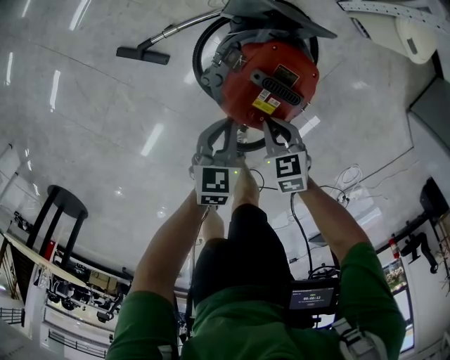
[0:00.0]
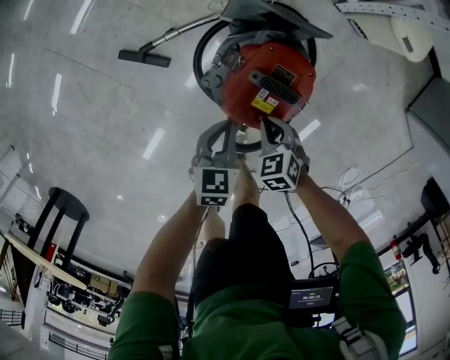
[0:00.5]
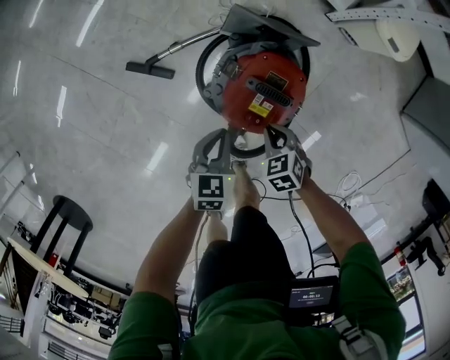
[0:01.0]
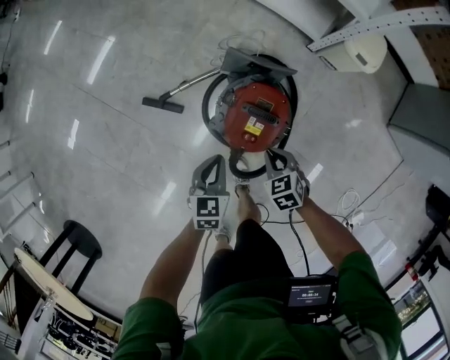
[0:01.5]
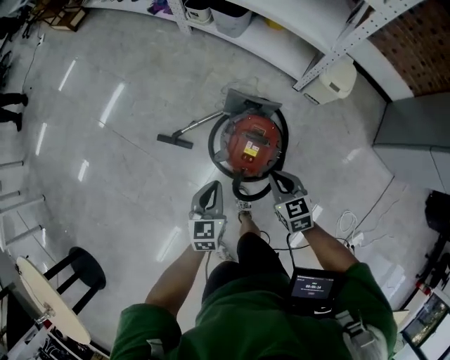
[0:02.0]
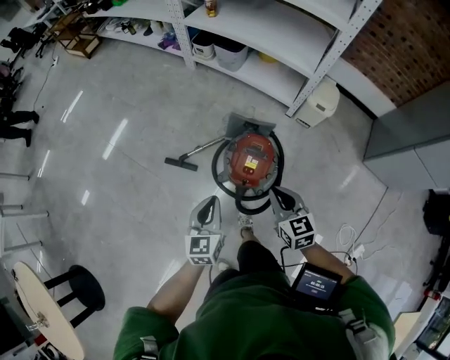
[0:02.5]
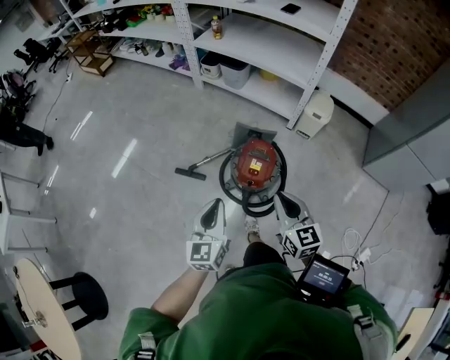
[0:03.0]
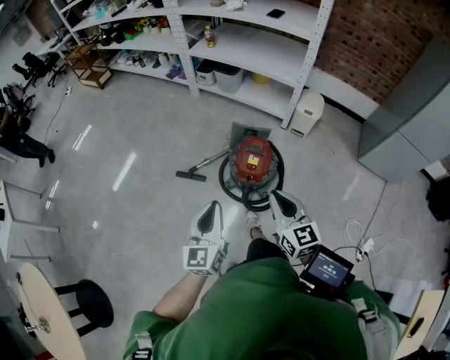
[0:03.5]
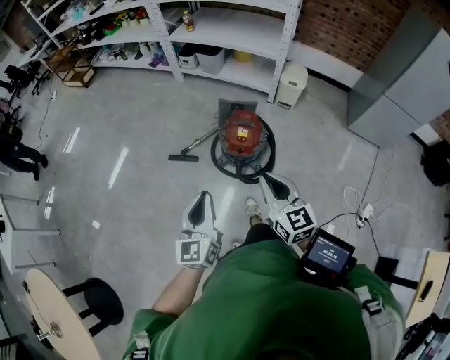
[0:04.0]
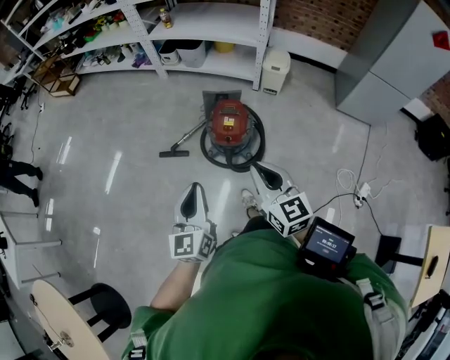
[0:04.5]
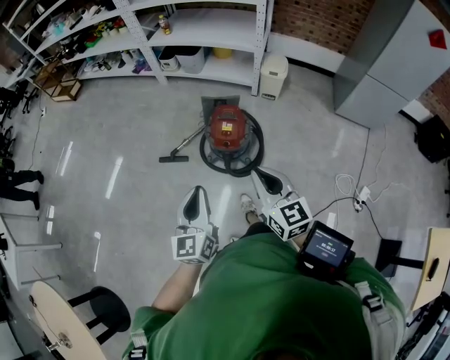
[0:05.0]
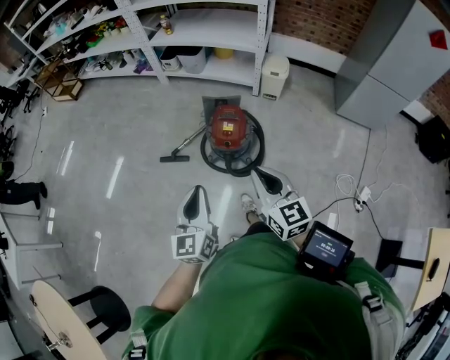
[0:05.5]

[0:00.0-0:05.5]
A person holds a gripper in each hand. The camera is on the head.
0:00.0 to 0:02.0: The grippers both shift upward by approximately 30 cm.
0:02.0 to 0:03.5: Both grippers travel together upward and backward, some 35 cm. The right gripper angles its fingers upward, by about 30 degrees, while the left gripper rotates about 30 degrees.
0:03.5 to 0:05.5: Both grippers travel together backward, roughly 10 cm.

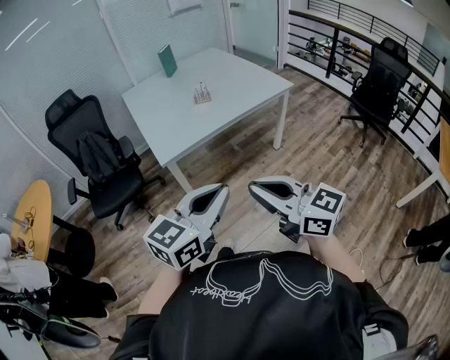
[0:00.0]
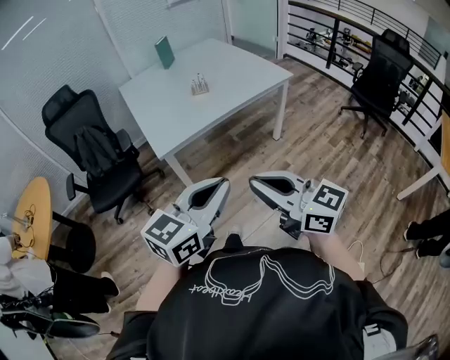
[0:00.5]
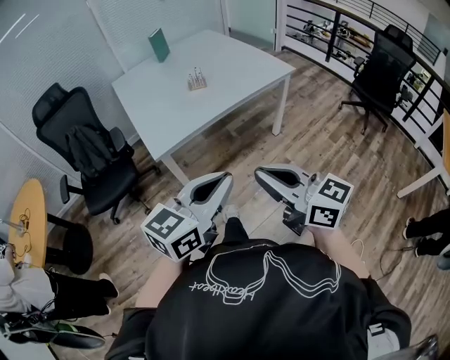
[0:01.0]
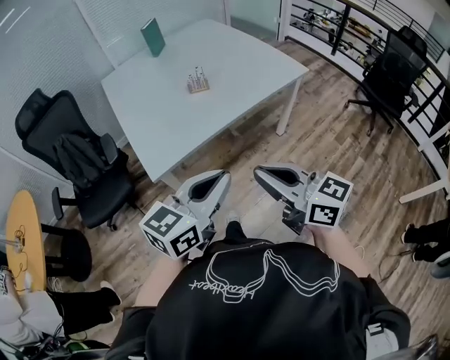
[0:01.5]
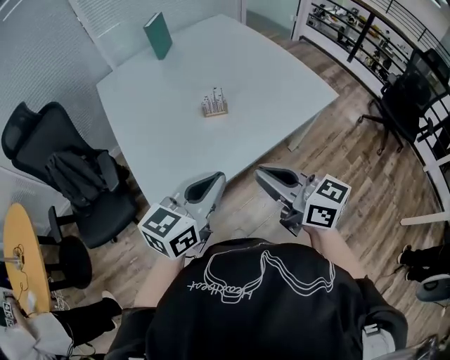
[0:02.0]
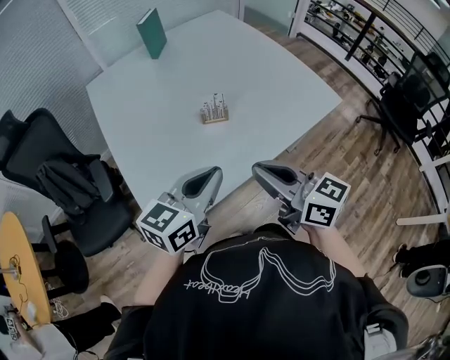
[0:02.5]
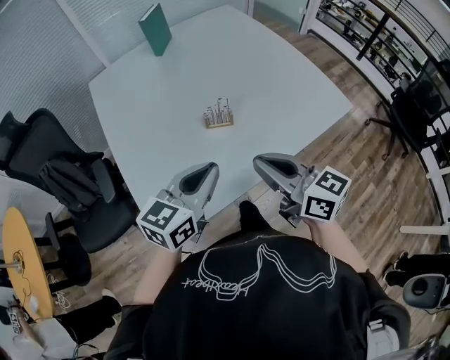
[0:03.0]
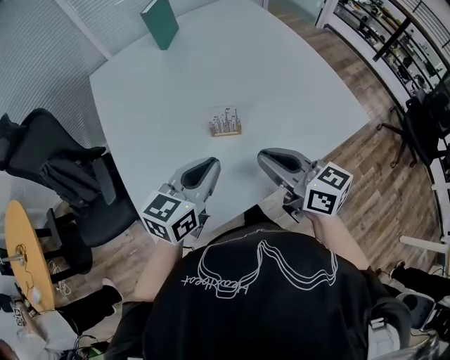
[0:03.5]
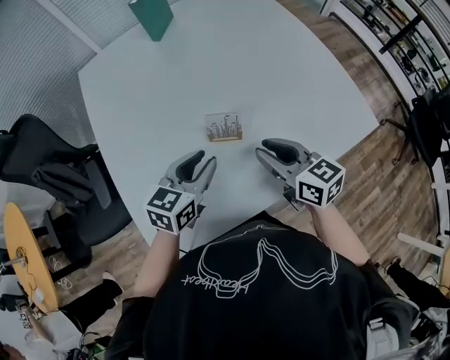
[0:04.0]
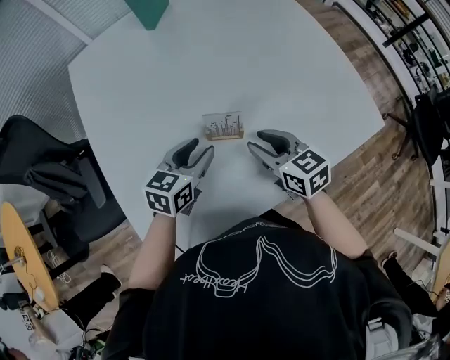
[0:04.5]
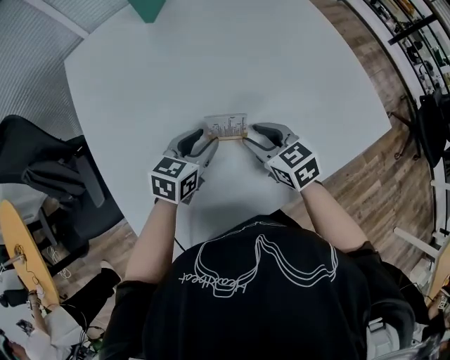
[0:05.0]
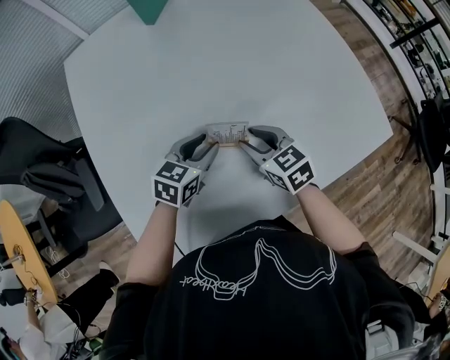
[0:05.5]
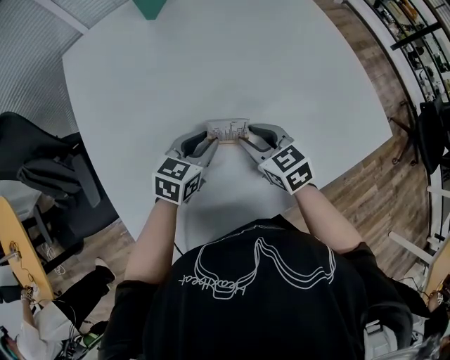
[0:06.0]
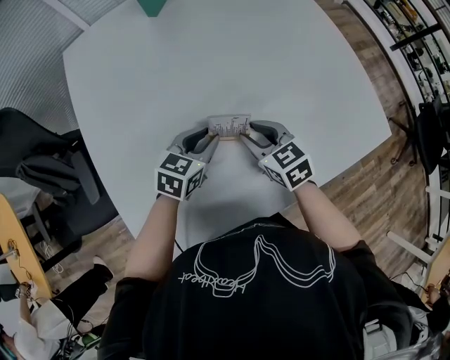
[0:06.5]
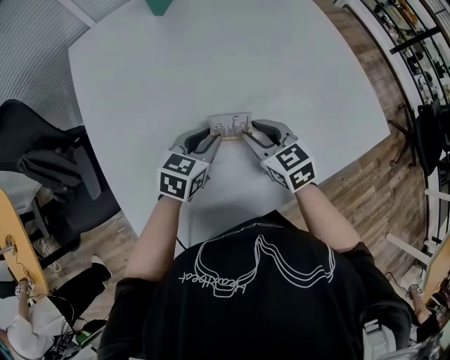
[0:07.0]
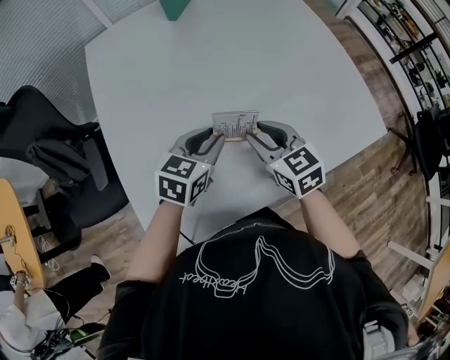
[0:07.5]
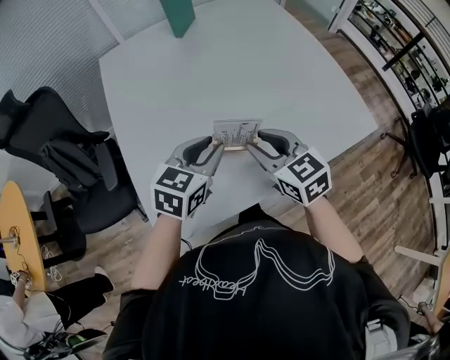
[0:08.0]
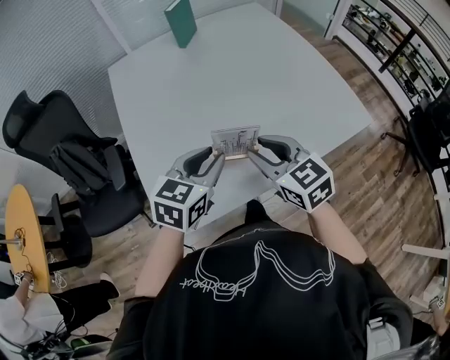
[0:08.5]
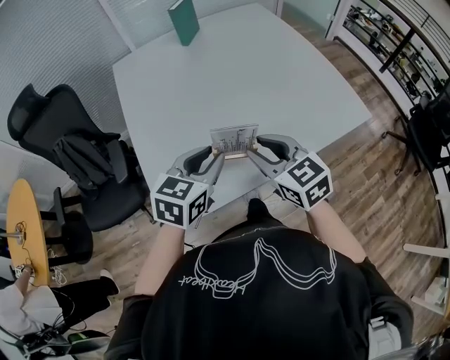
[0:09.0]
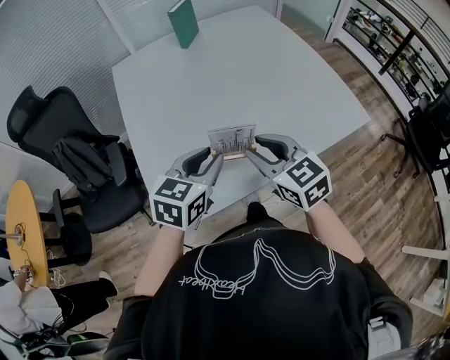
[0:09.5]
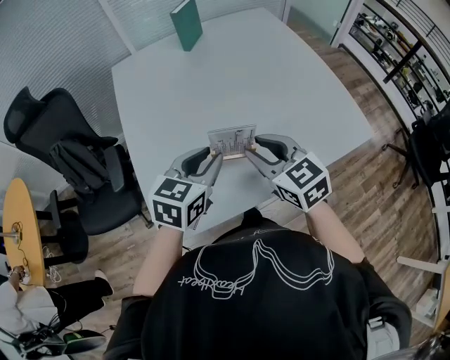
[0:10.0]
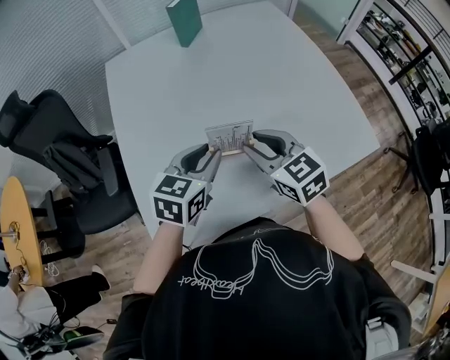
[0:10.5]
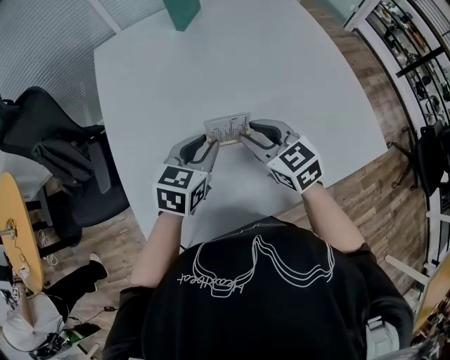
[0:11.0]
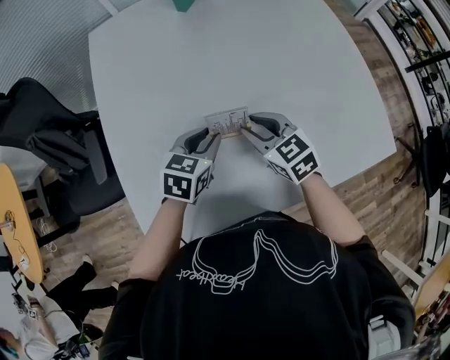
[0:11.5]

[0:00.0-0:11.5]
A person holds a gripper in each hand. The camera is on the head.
0:00.0 to 0:02.0: The two grippers travel together, forward, approximately 50 cm.
0:02.0 to 0:04.0: Both grippers travel together forward and downward, about 30 cm. The right gripper opens. Meanwhile the left gripper opens.
0:04.0 to 0:06.0: Both grippers move downward and forward, roughly 15 cm. The right gripper rotates approximately 20 degrees.
0:06.0 to 0:07.5: The grippers both shift upward and backward by some 10 cm.
0:07.5 to 0:09.5: The grippers both shift backward and upward by roughly 20 cm.
0:09.5 to 0:11.5: Both grippers move forward and downward, about 25 cm.

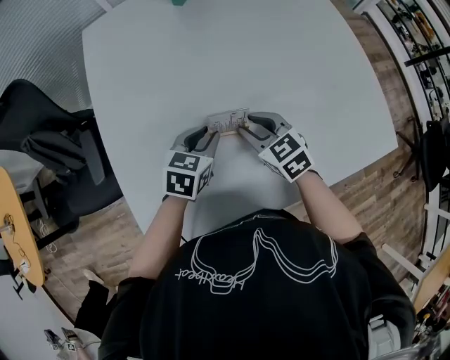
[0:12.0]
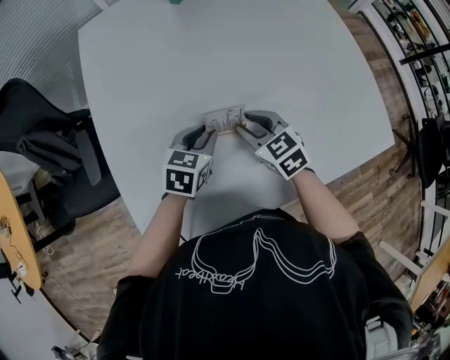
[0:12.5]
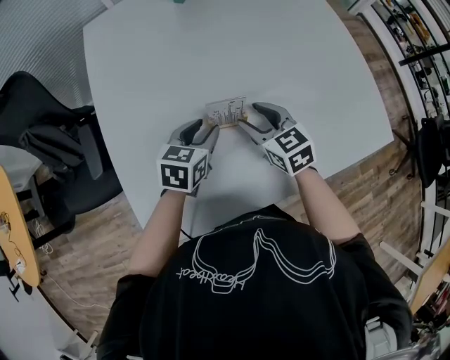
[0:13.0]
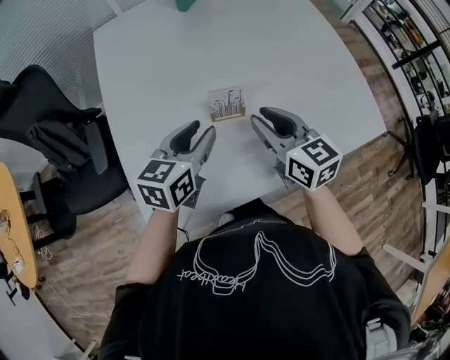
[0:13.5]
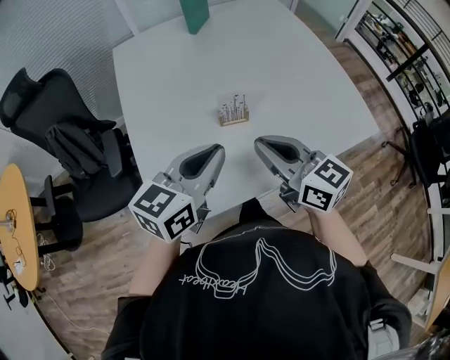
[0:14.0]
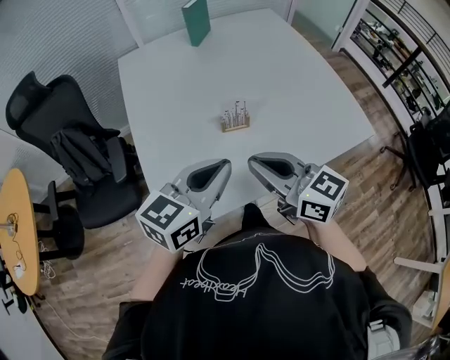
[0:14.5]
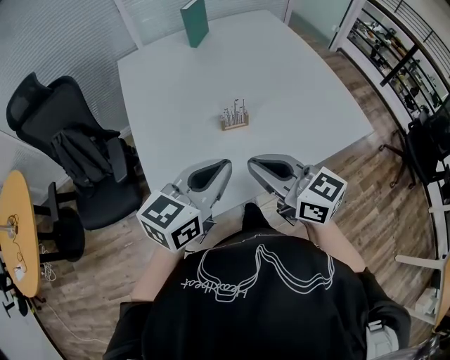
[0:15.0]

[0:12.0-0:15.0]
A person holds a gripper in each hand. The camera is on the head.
0:12.0 to 0:13.5: The grippers both shift upward and backward by some 15 cm. The right gripper changes its angle by about 30 degrees, and opens, then closes once more. The left gripper changes its angle by about 20 degrees.
0:13.5 to 0:15.0: The grippers both shift backward and upward by some 20 cm. The left gripper closes; the right gripper closes up.

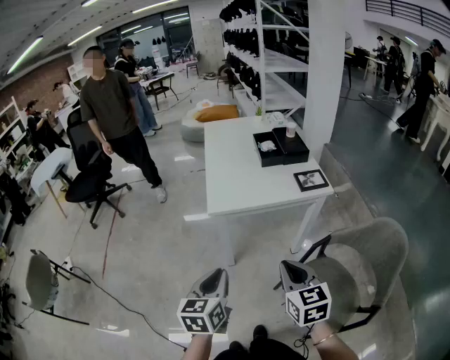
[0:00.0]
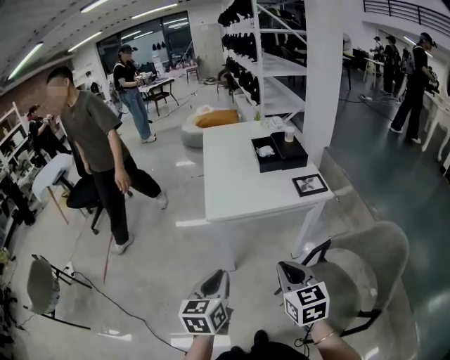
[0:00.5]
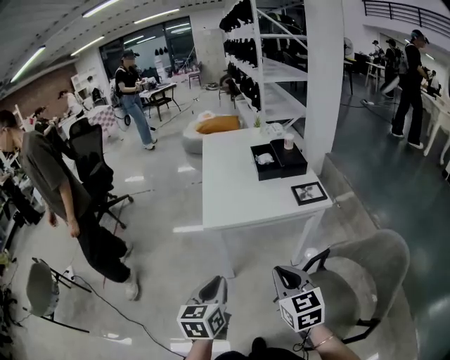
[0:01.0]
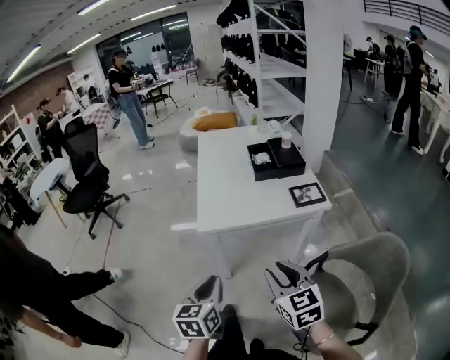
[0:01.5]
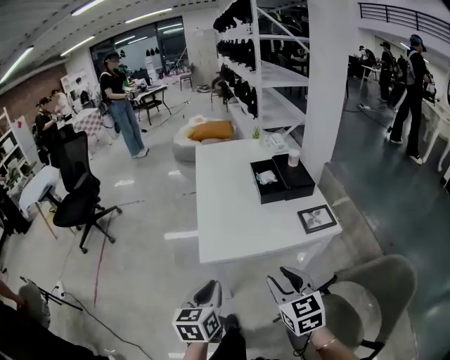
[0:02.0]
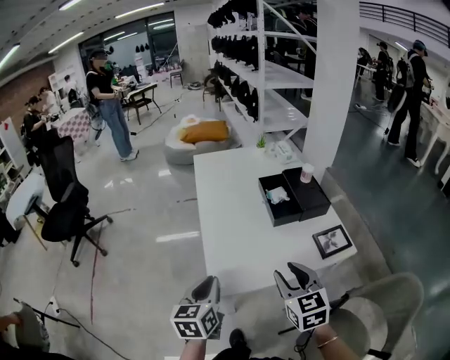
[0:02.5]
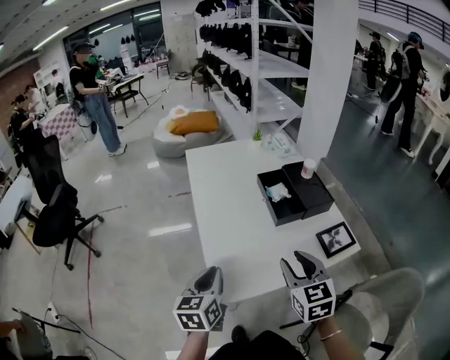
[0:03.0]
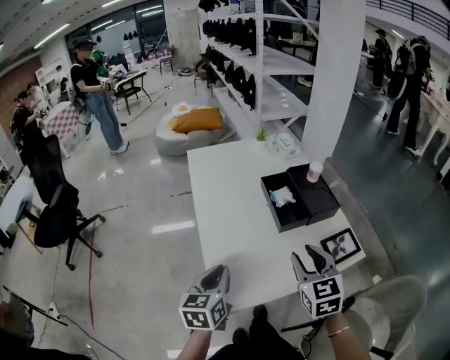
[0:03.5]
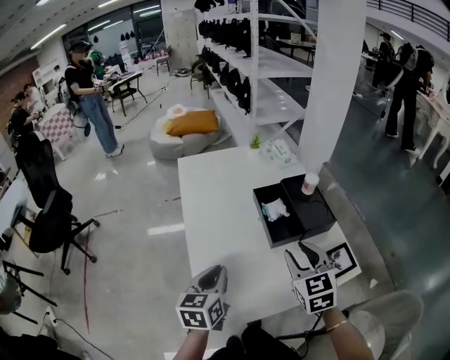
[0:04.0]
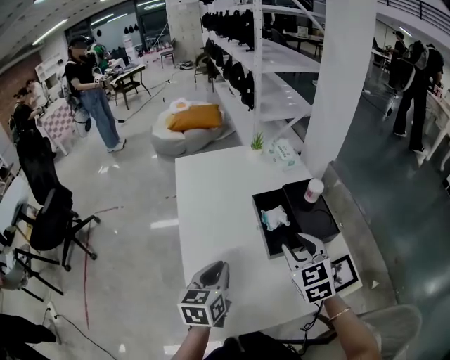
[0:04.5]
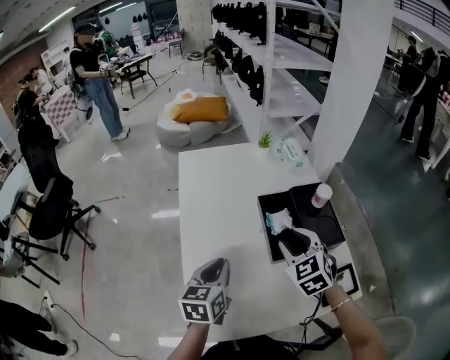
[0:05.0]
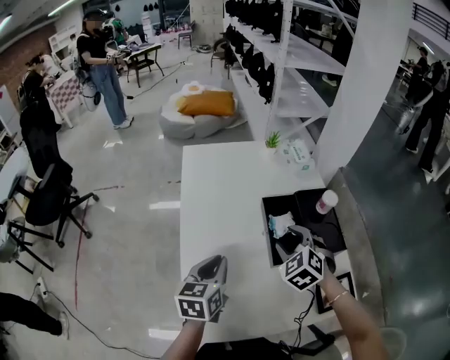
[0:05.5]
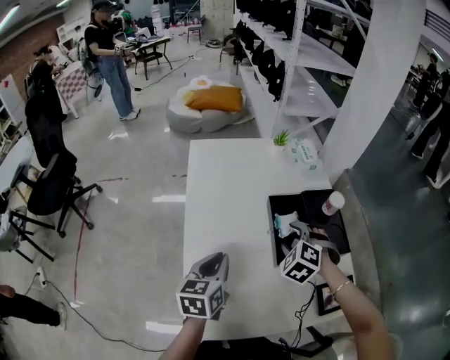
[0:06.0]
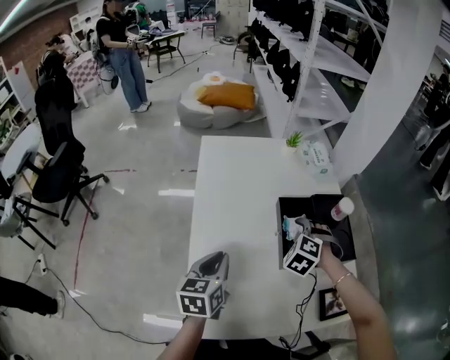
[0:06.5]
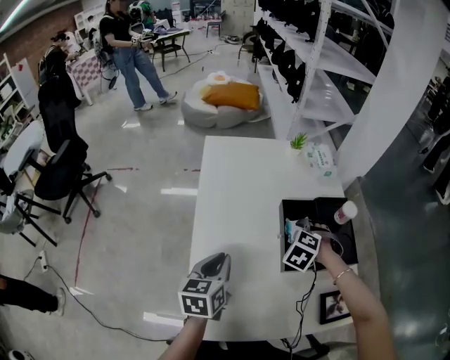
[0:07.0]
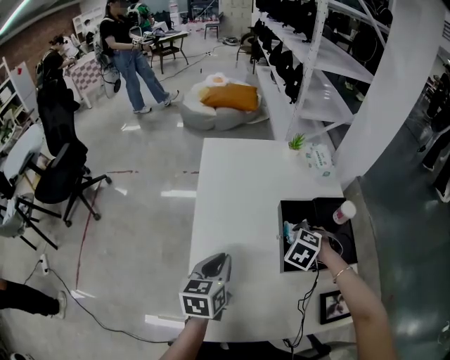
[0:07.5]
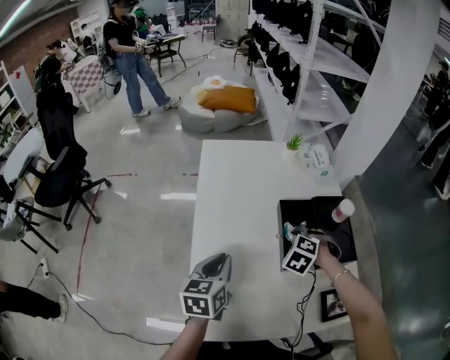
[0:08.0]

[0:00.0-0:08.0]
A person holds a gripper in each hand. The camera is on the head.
0:00.0 to 0:02.0: The two grippers go approximately 20 cm forward. The right gripper opens its fingers.
0:02.0 to 0:04.0: Both grippers move forward, approximately 35 cm.
0:04.0 to 0:06.0: The left gripper travels forward by approximately 10 cm, while the right gripper travels forward and downward by some 20 cm, and rolls counterclockwise, seen from behind, by some 50 degrees.
0:06.0 to 0:08.0: The right gripper changes place by roughly 5 cm, and closes its fingers.
